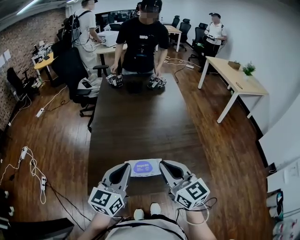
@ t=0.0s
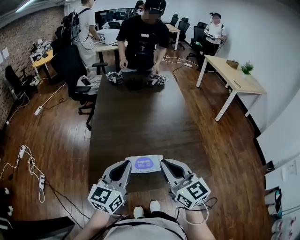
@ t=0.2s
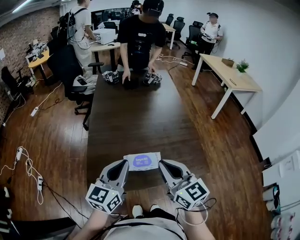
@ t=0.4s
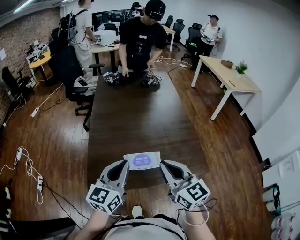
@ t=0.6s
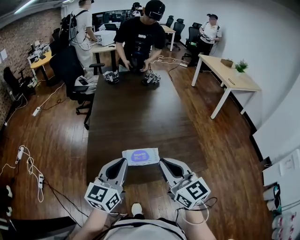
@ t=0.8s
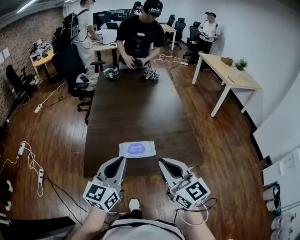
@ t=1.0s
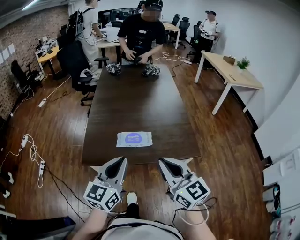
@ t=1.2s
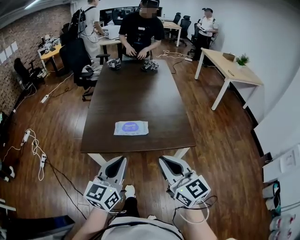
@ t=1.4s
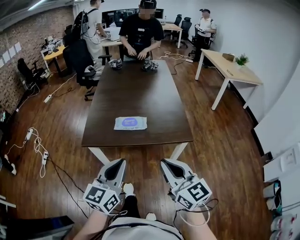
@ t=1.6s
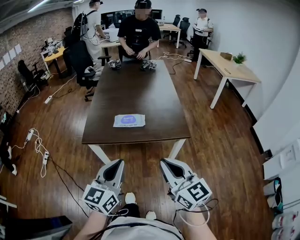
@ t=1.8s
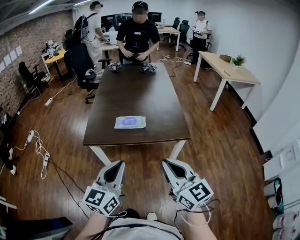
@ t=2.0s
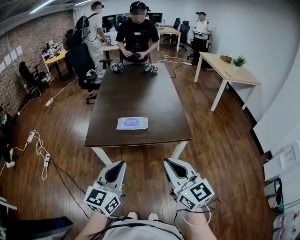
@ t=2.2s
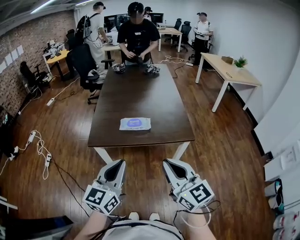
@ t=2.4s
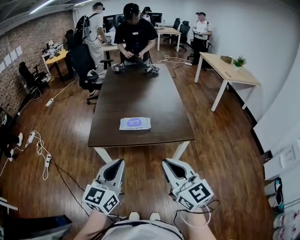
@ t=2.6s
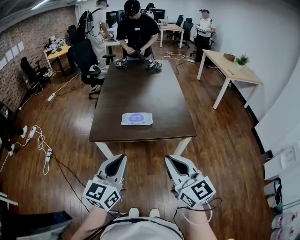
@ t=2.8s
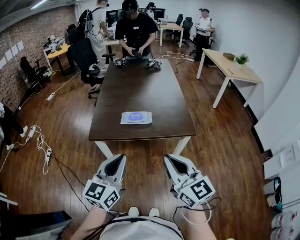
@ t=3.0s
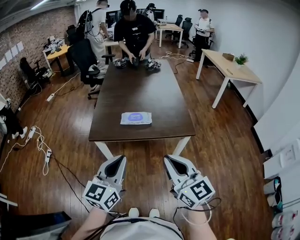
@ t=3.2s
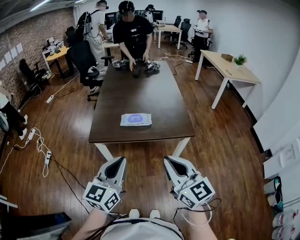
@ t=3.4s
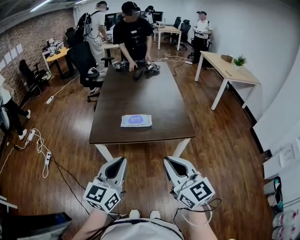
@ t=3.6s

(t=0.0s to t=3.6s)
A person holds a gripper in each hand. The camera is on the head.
t=0.0s - t=1.8s: Both grippers move backward, approximately 35 cm.
t=1.8s - t=3.6s: The right gripper ends up some 5 cm from where it was. The left gripper moves approximately 5 cm.

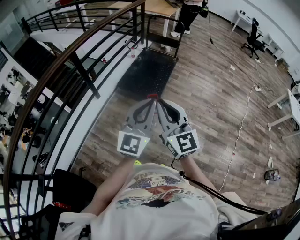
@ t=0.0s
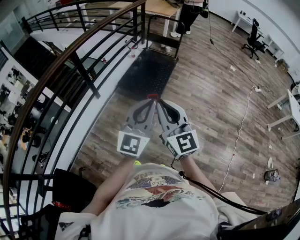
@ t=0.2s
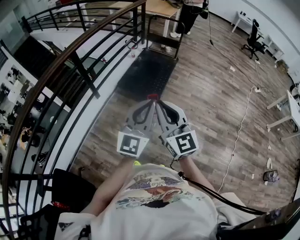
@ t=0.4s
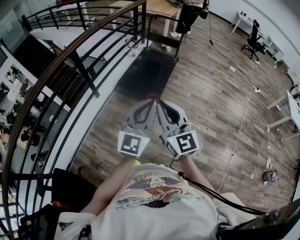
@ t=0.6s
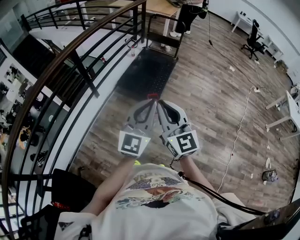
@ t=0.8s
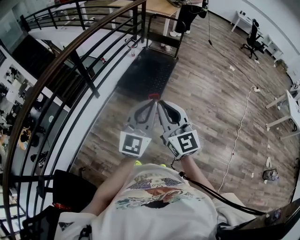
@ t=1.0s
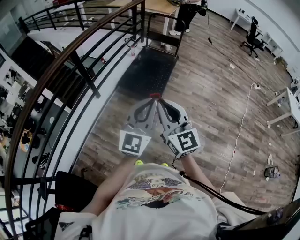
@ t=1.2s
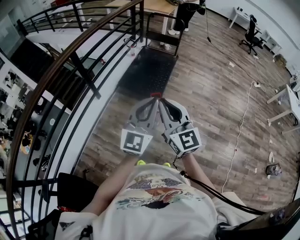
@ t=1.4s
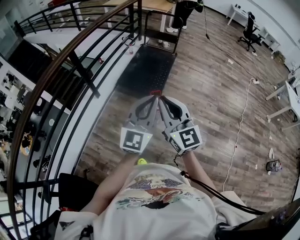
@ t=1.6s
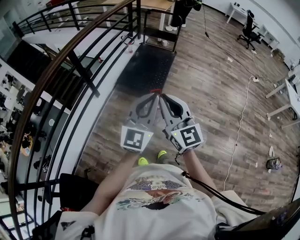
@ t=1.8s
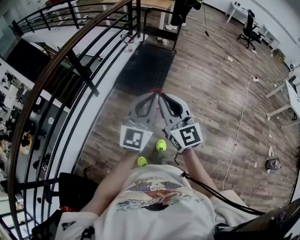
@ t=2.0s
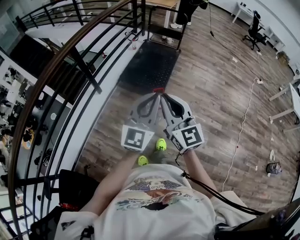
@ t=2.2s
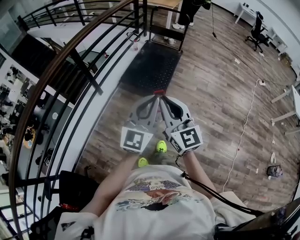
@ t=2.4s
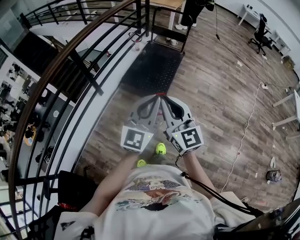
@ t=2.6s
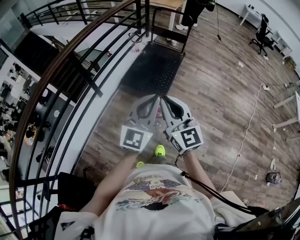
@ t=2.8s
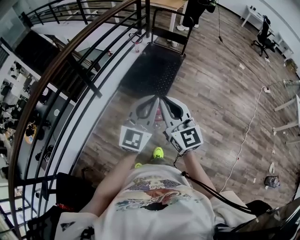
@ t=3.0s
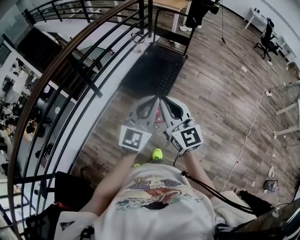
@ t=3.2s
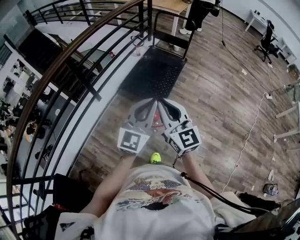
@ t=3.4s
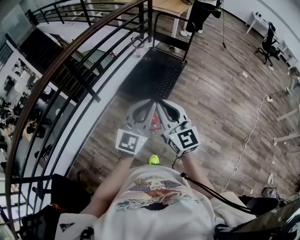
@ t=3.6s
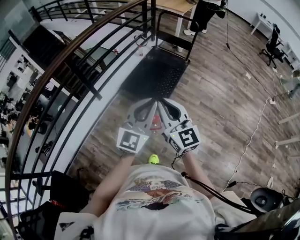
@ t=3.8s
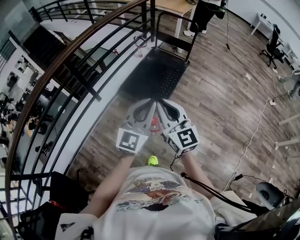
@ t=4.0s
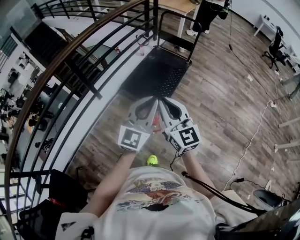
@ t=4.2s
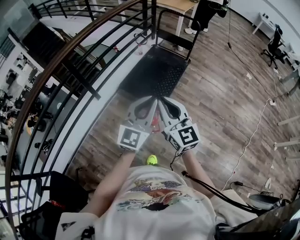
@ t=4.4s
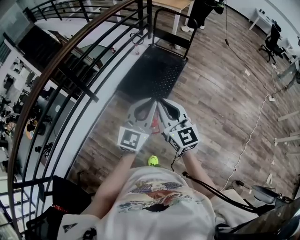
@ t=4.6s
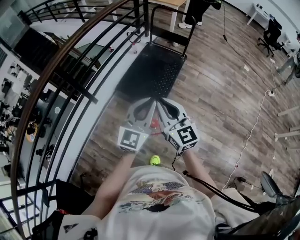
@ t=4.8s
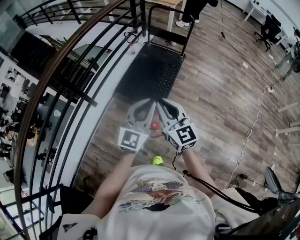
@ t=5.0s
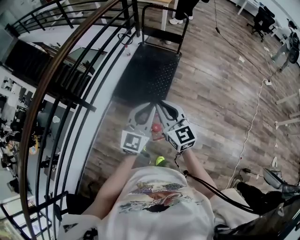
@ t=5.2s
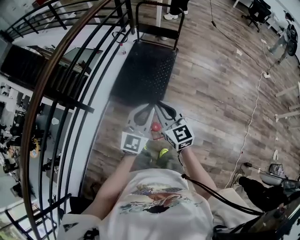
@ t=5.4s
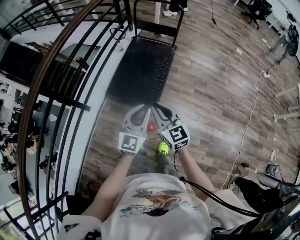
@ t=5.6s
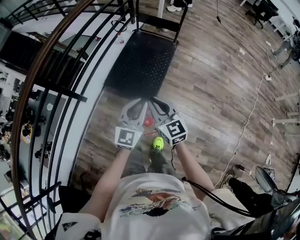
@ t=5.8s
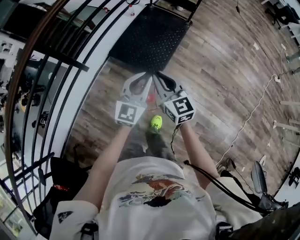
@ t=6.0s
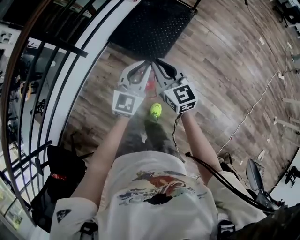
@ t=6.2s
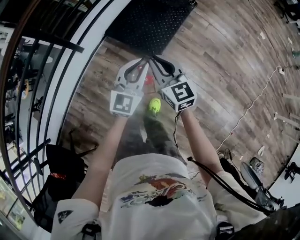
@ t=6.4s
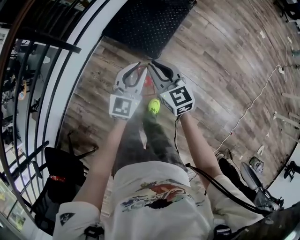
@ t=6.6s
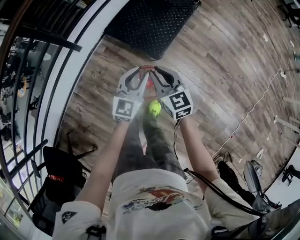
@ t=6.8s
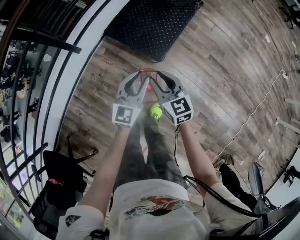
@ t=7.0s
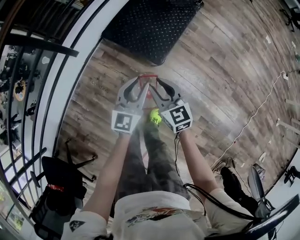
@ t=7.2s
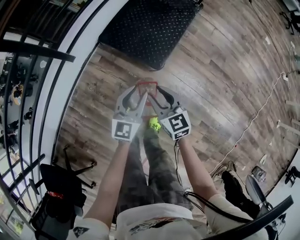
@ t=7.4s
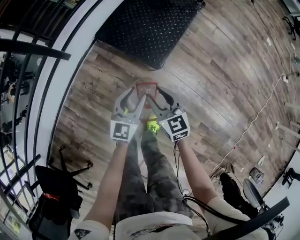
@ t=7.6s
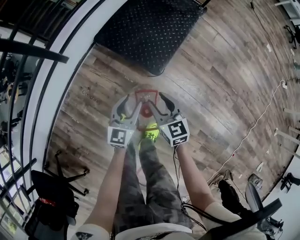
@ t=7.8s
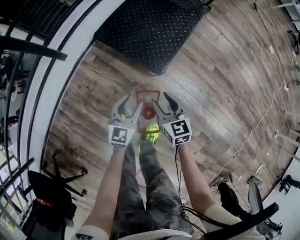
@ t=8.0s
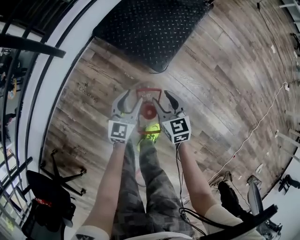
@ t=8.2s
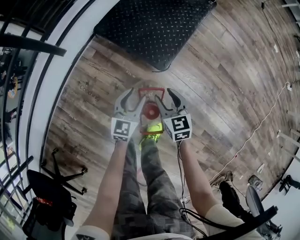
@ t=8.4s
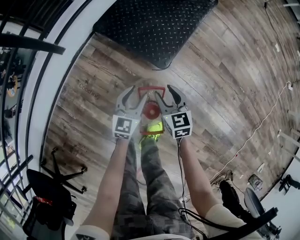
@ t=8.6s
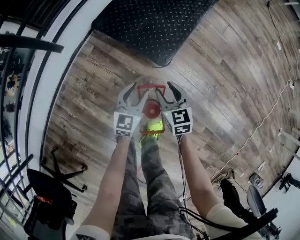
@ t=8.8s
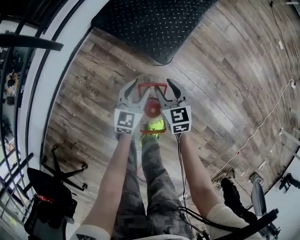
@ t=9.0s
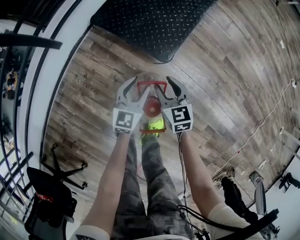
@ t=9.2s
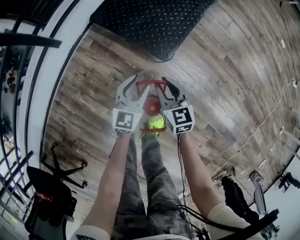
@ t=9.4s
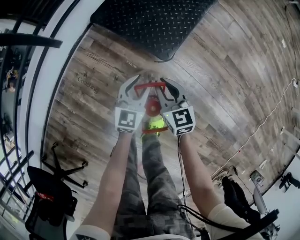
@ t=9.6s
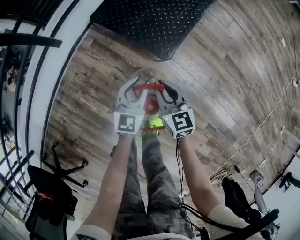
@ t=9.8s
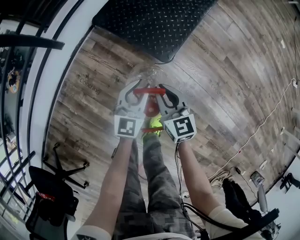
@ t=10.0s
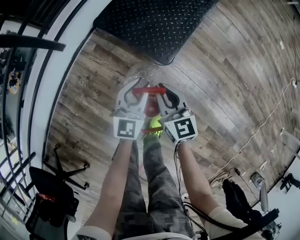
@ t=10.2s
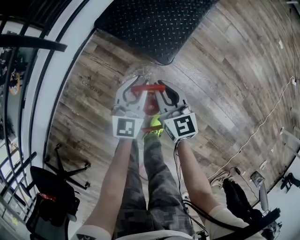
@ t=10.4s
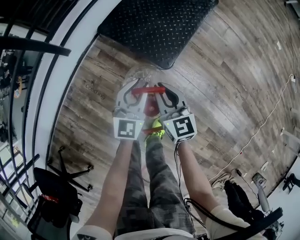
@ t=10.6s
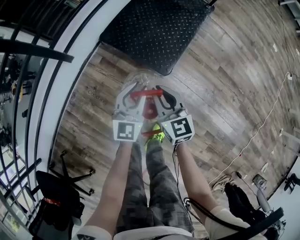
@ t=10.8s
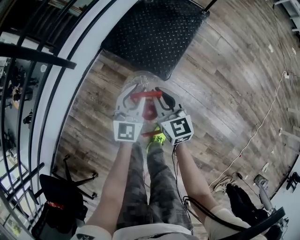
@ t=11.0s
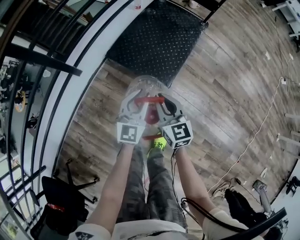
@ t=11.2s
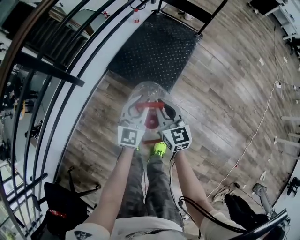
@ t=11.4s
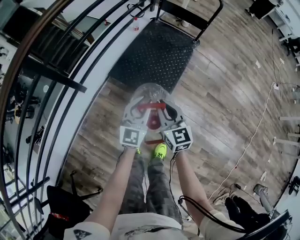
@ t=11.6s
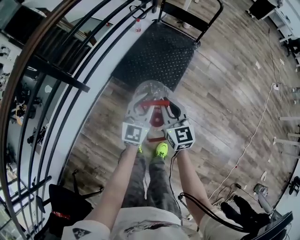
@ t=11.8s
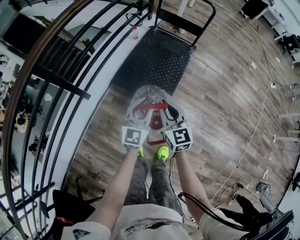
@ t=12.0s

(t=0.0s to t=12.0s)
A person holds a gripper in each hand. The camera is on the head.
t=0.0s - t=1.6s: The grippers both shift to the left by about 5 cm.
t=1.6s - t=3.0s: Both grippers travel together forward, roughly 15 cm.
t=3.0s - t=4.4s: Both grippers travel together forward and to the right, some 15 cm.
t=4.4s - t=6.0s: The two grippers go roughly 25 cm downward and forward.
t=6.0s - t=7.6s: The two grippers go roughly 35 cm downward. The right gripper opens. The left gripper opens.
t=7.6s - t=9.0s: The grippers both shift downward by about 20 cm.
t=9.0s - t=10.4s: Both grippers travel together upward, approximately 10 cm. The right gripper closes. The left gripper swivels about 20 degrees.
t=10.4s - t=12.0s: Both grippers travel together upward, approximately 35 cm.

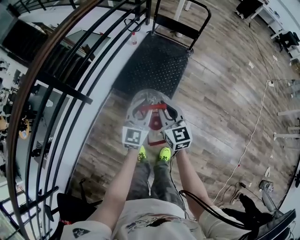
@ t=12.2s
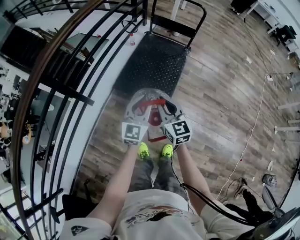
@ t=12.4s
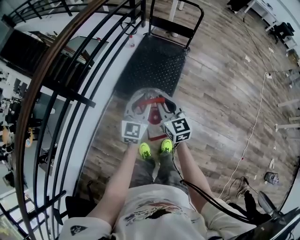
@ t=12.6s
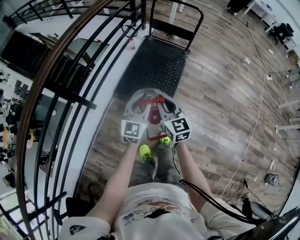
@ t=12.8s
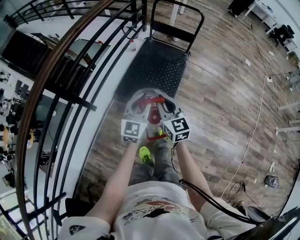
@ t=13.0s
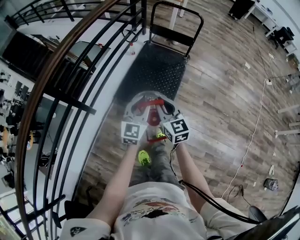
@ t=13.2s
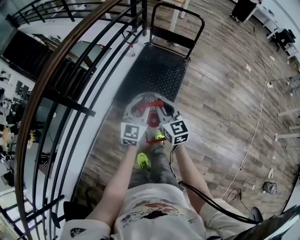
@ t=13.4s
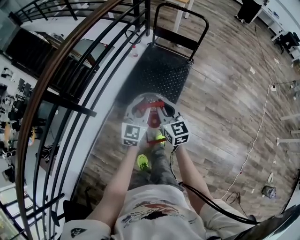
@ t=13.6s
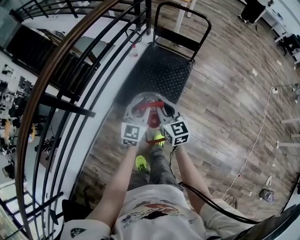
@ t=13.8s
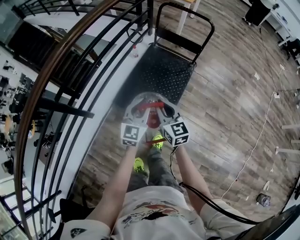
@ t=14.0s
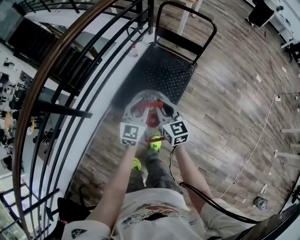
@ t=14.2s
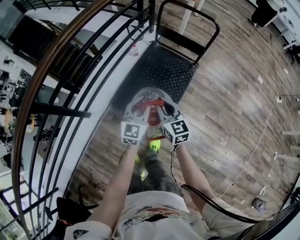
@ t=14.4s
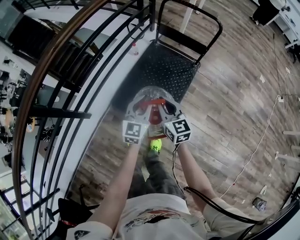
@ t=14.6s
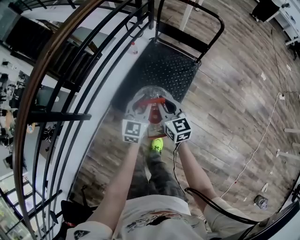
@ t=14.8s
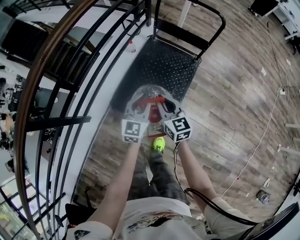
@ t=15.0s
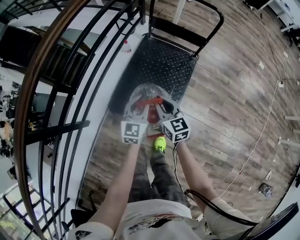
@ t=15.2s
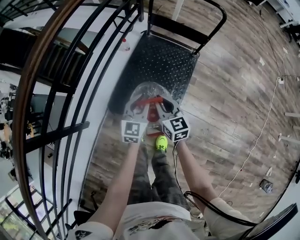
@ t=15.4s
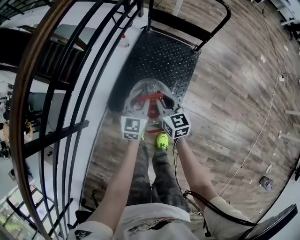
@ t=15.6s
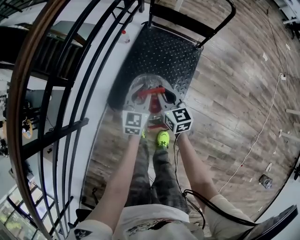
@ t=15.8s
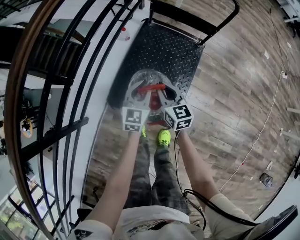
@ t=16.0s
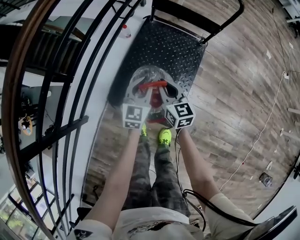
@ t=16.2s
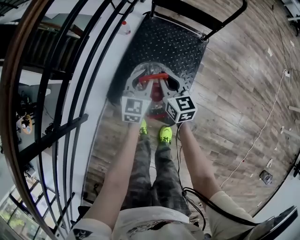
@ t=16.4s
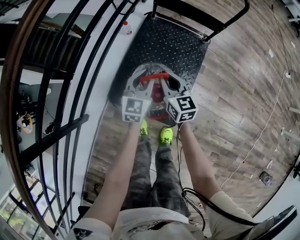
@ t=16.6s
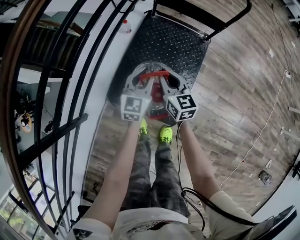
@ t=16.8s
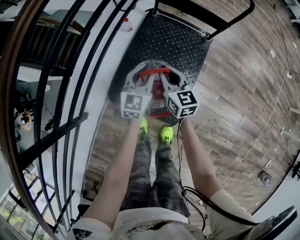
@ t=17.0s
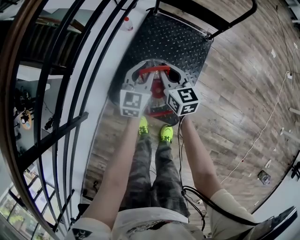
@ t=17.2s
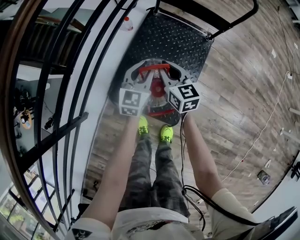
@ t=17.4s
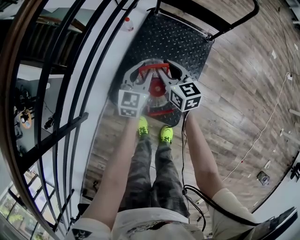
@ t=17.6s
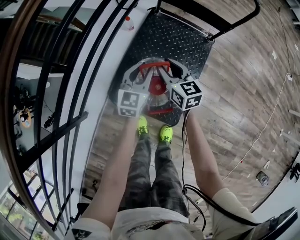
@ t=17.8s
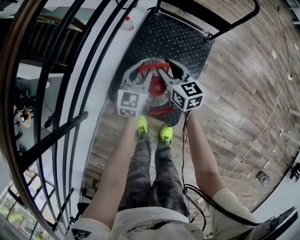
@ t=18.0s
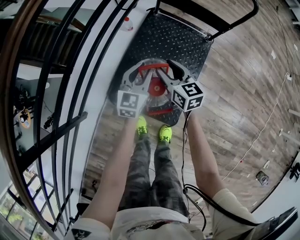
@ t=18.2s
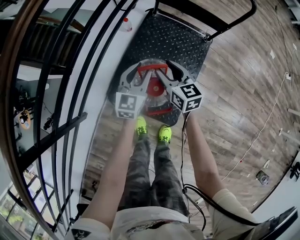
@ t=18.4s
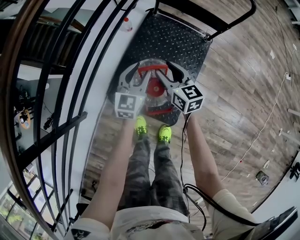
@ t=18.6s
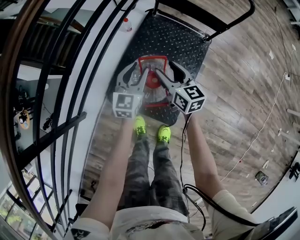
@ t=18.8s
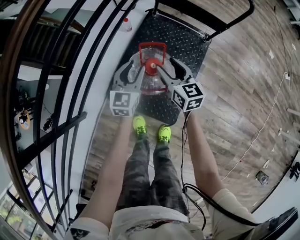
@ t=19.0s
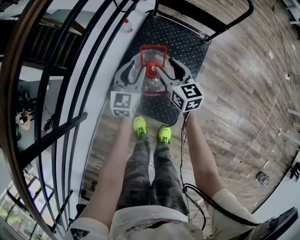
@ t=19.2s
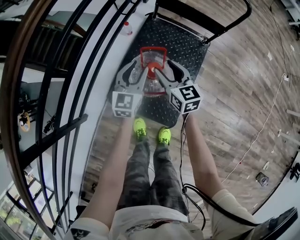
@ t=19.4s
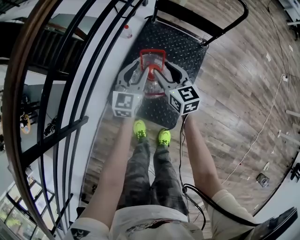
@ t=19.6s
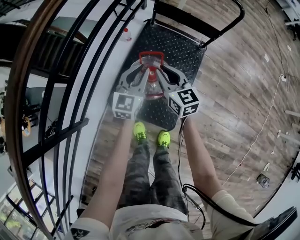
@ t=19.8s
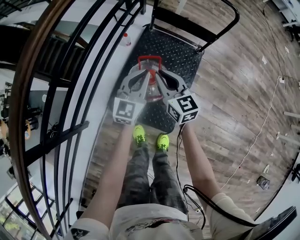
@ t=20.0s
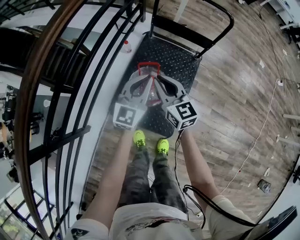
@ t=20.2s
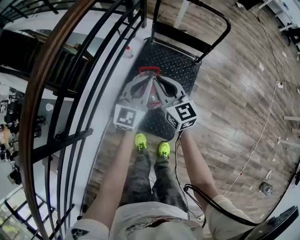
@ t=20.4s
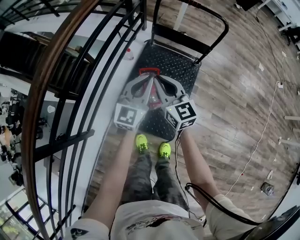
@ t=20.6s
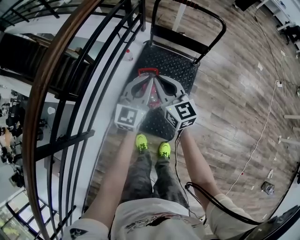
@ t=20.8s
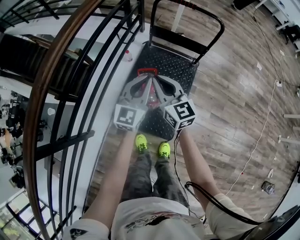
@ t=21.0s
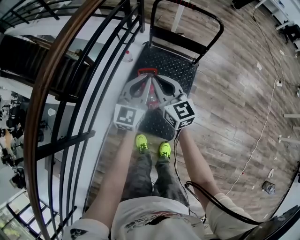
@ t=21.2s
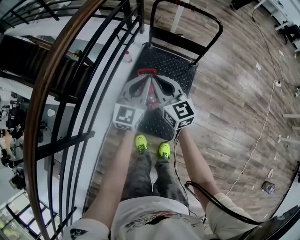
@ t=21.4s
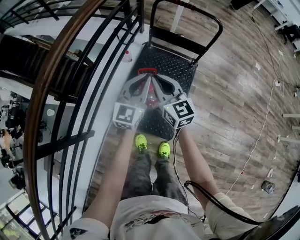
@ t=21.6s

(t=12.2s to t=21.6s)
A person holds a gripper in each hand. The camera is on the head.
t=12.2s - t=13.8s: The two grippers go roughly 15 cm forward.
t=13.8s - t=15.4s: Both grippers move forward and downward, some 30 cm.
t=15.4s - t=17.0s: Both grippers move forward and downward, some 15 cm.
t=17.0s - t=18.4s: The right gripper opens.
t=18.4s - t=20.0s: Both grippers travel together upward, approximately 10 cm. The right gripper closes up, while the left gripper closes its fingers.
t=20.0s - t=21.6s: Both grippers move upward, approximately 15 cm.
